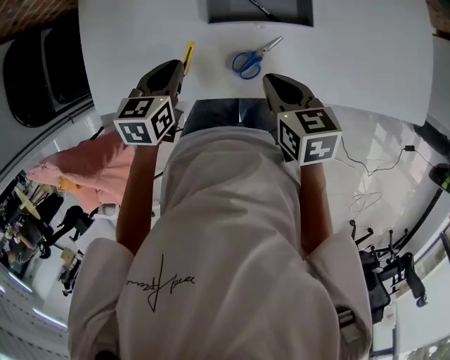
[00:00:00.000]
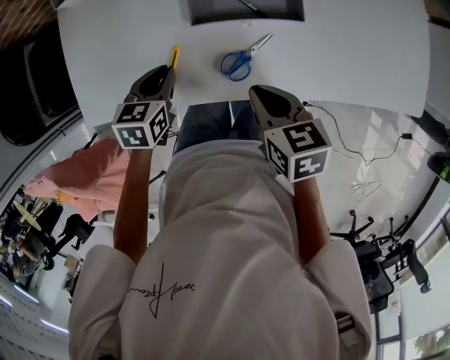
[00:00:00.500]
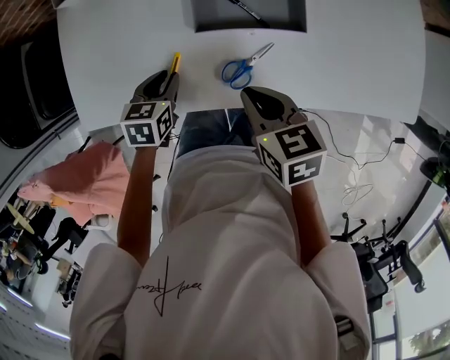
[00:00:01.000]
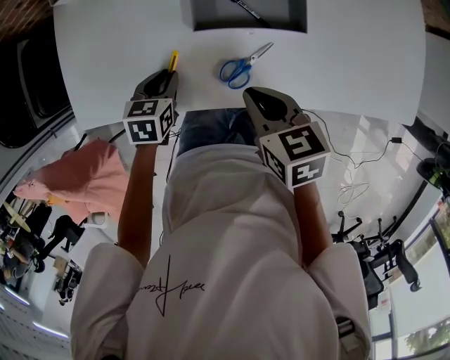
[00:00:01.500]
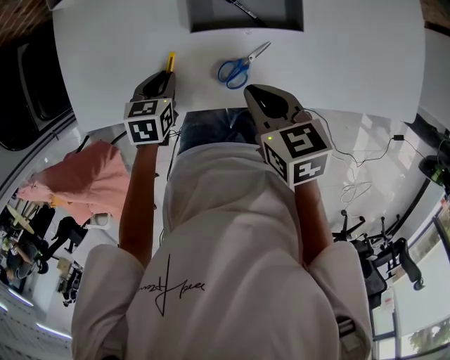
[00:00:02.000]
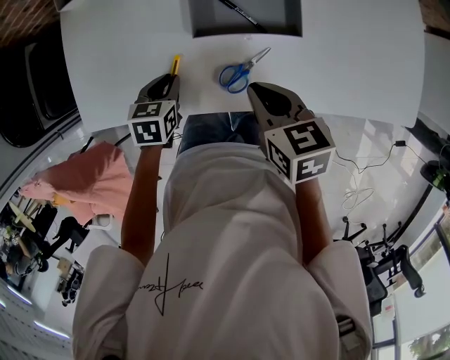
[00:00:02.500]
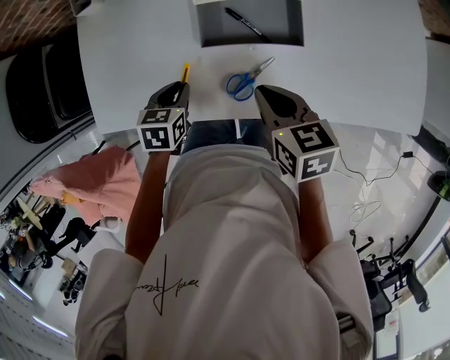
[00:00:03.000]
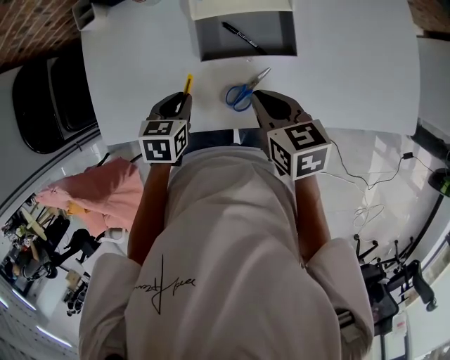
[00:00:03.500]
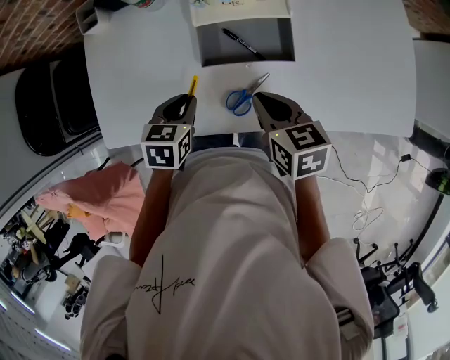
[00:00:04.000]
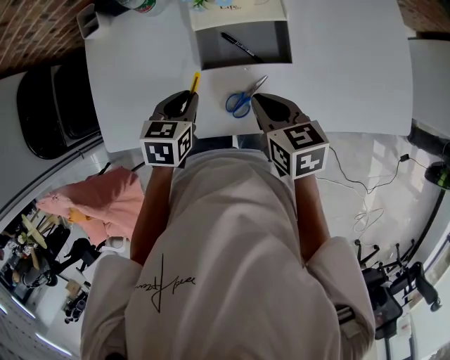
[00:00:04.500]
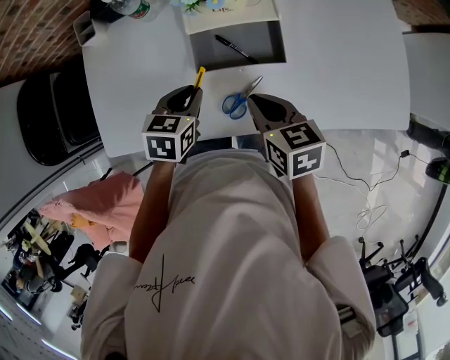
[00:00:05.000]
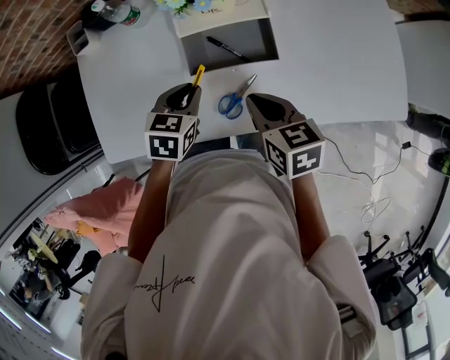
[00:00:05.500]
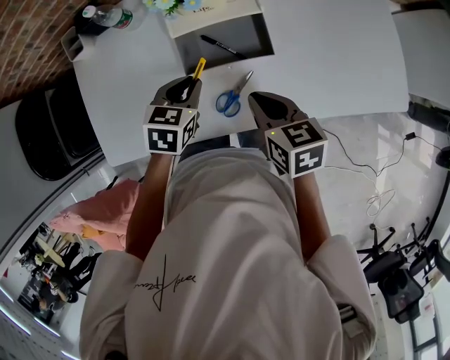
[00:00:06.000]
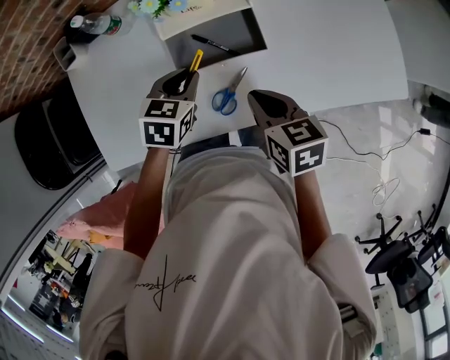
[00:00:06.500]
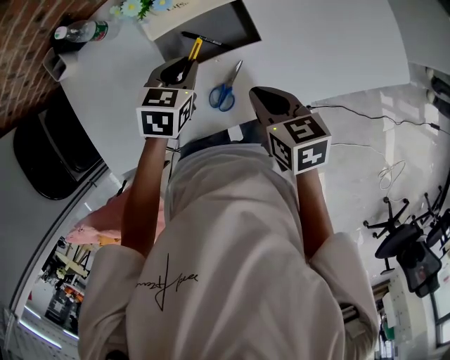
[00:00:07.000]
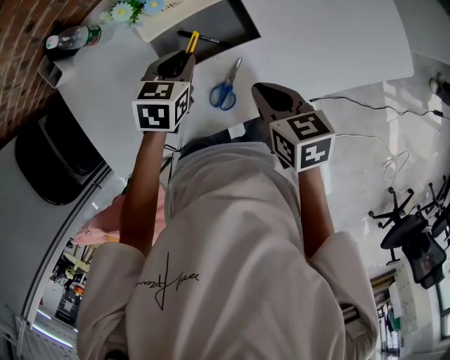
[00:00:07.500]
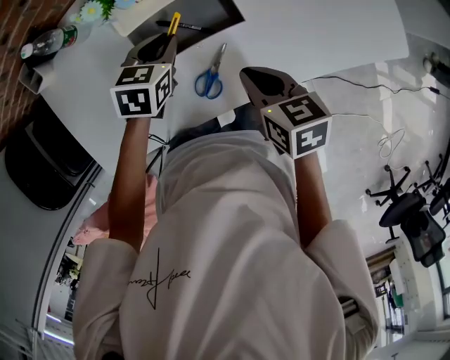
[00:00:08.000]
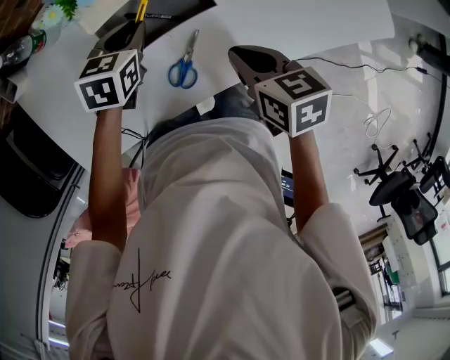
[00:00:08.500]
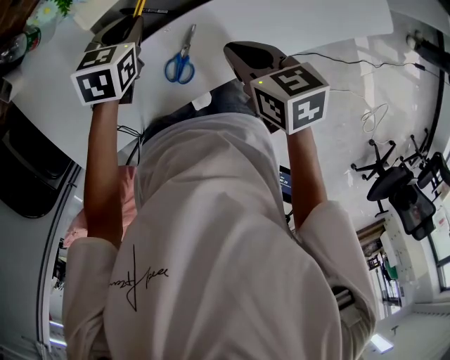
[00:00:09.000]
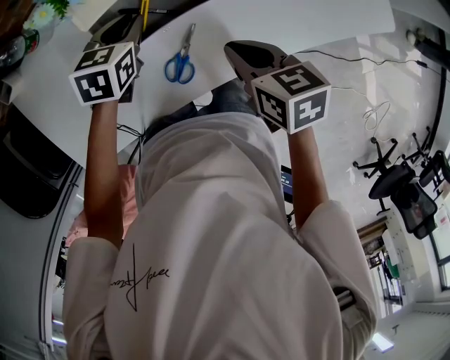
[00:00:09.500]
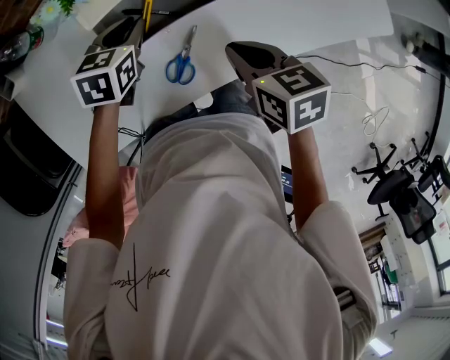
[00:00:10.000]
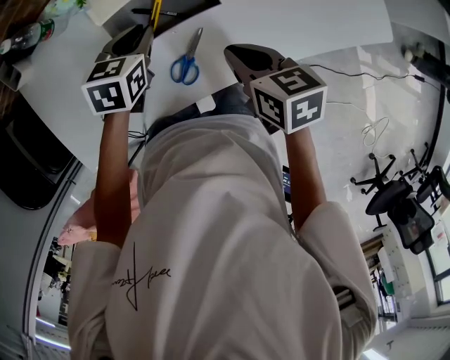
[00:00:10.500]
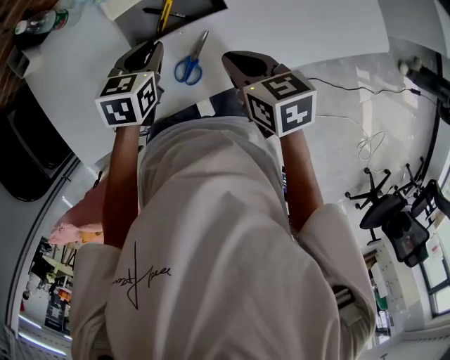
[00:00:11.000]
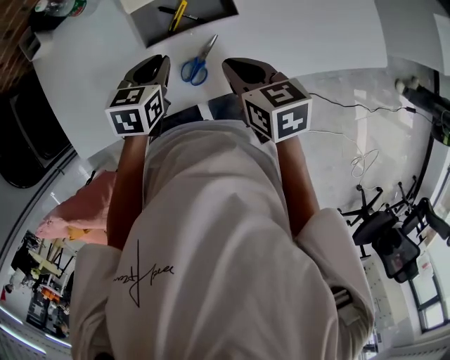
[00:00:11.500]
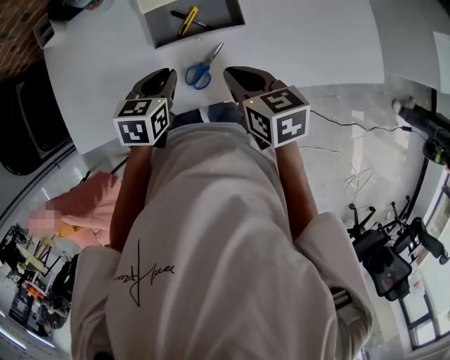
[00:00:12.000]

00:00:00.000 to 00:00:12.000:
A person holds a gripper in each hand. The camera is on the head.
00:00:00.000 to 00:00:02.000: The left gripper shifts about 10 cm downward.
00:00:02.000 to 00:00:04.000: The left gripper shifts approximately 10 cm upward and to the right; the right gripper shifts by approximately 5 cm.
00:00:04.000 to 00:00:06.000: The left gripper moves to the right, about 5 cm.
00:00:06.000 to 00:00:08.000: The left gripper moves forward, about 5 cm.
00:00:08.000 to 00:00:10.000: The grippers move only a little.
00:00:10.000 to 00:00:12.000: The left gripper moves backward, approximately 15 cm, while the right gripper shifts by some 5 cm.

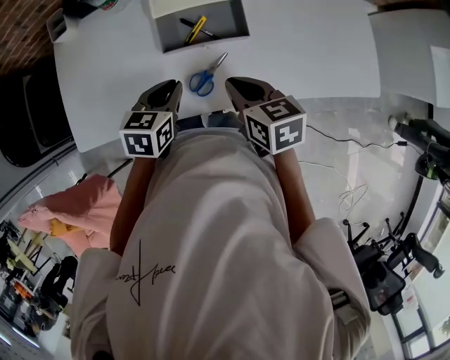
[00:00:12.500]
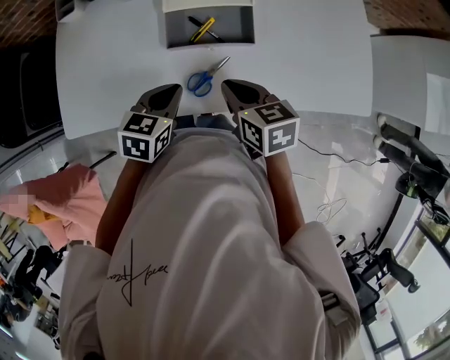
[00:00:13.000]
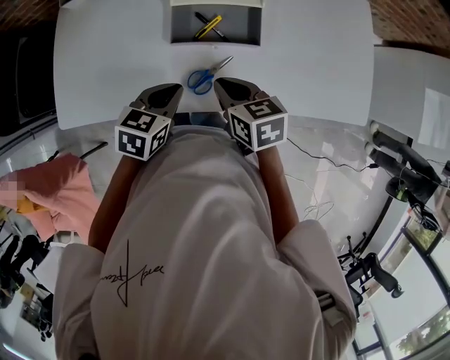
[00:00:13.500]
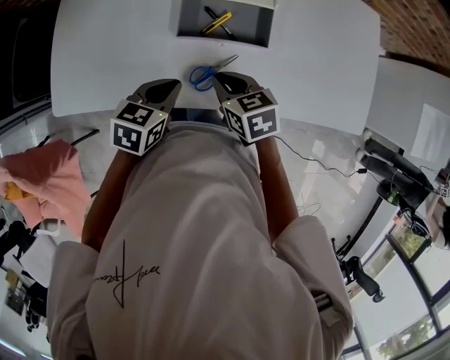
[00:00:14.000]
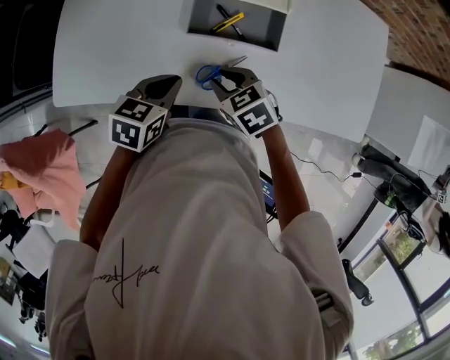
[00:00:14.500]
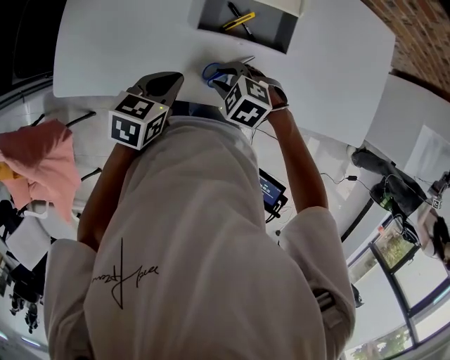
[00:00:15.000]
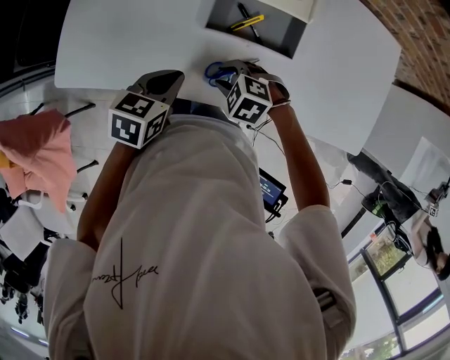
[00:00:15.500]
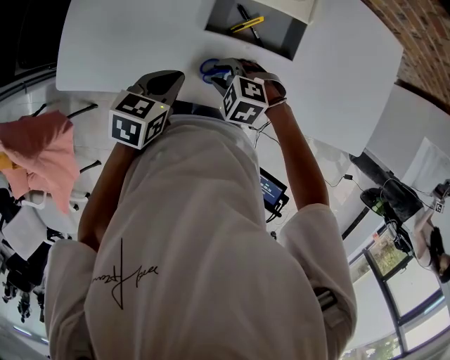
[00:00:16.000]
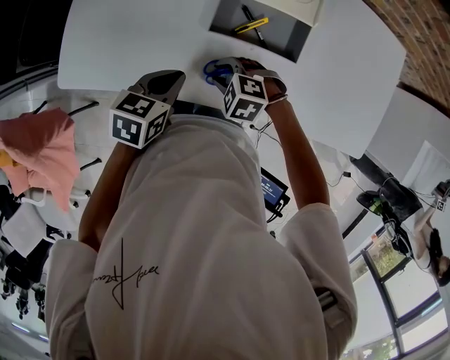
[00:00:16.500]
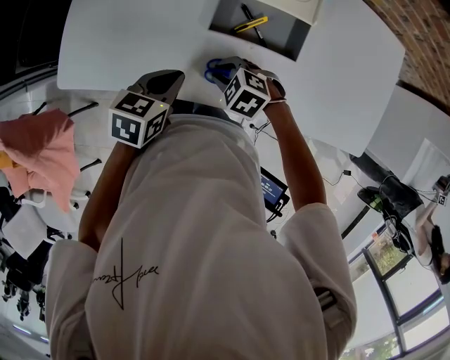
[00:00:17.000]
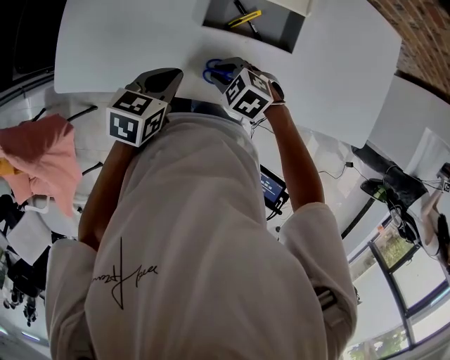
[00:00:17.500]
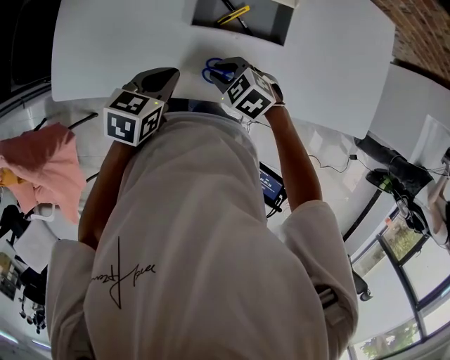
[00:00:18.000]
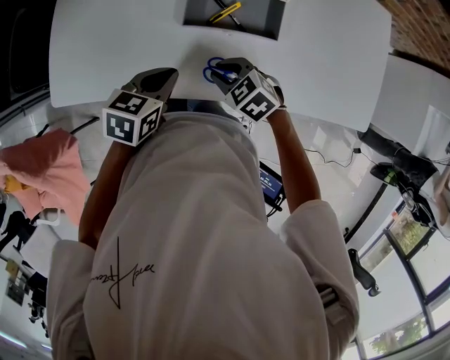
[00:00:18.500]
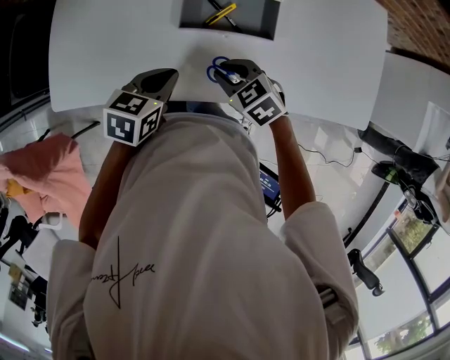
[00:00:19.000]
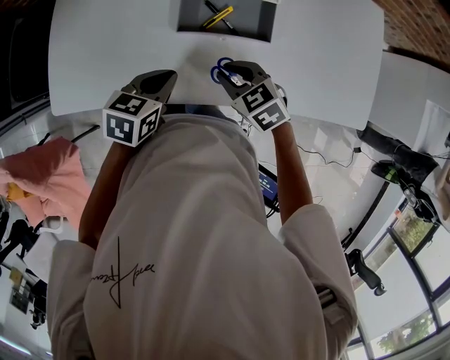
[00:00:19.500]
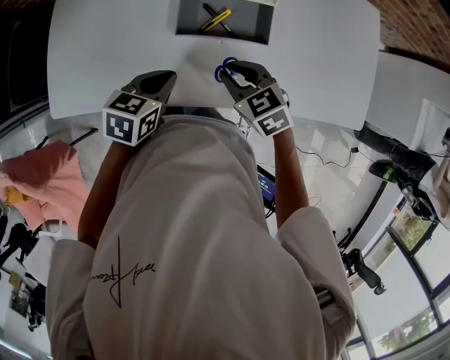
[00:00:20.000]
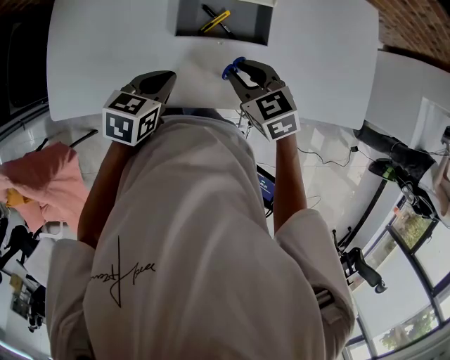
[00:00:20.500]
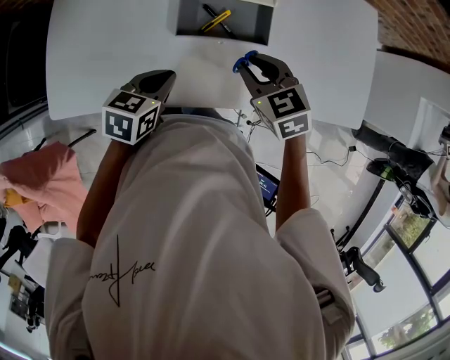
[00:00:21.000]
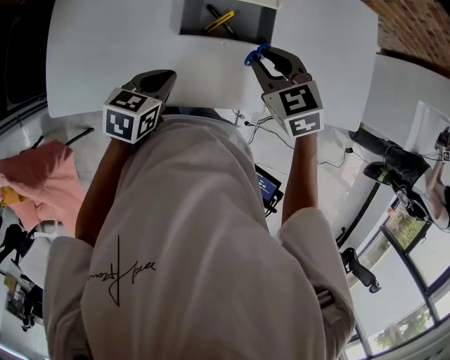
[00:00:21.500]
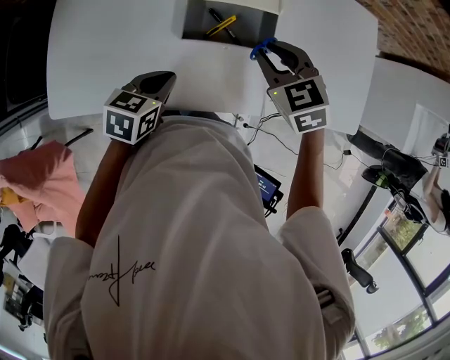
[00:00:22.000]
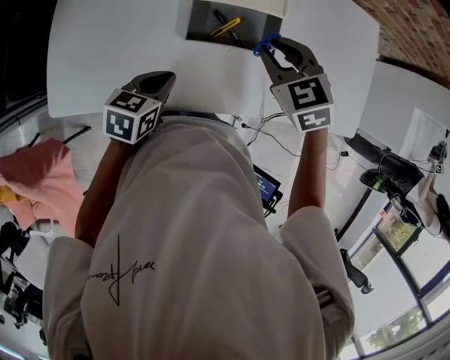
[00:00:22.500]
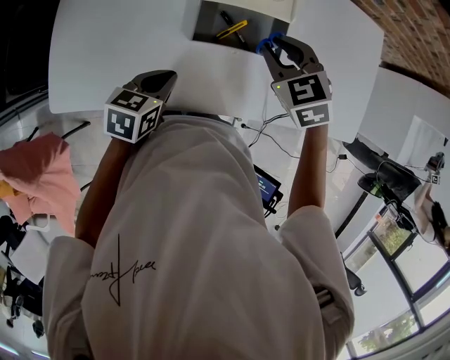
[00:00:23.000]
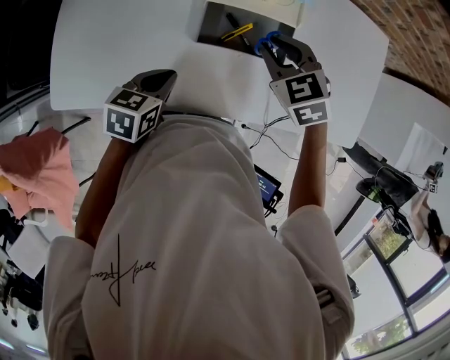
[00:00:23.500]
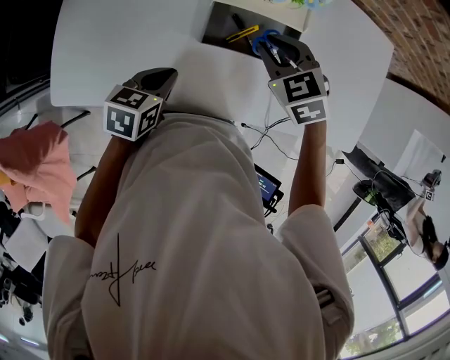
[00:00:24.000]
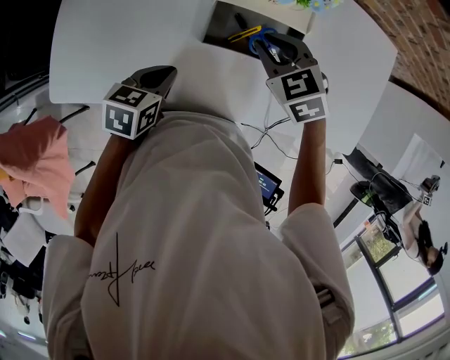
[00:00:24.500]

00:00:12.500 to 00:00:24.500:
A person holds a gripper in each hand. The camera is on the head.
00:00:12.500 to 00:00:14.500: The right gripper shifts approximately 10 cm downward and to the left, rotates roughly 40 degrees, and opens.
00:00:14.500 to 00:00:16.500: The right gripper travels downward by some 5 cm, and rolls counterclockwise, seen from behind, by roughly 40 degrees.
00:00:16.500 to 00:00:18.500: The right gripper changes place by about 5 cm, and rotates some 30 degrees.
00:00:18.500 to 00:00:20.500: The right gripper moves upward and to the right, approximately 10 cm, and turns by roughly 20 degrees.
00:00:20.500 to 00:00:22.500: The right gripper moves forward and upward, some 10 cm.
00:00:22.500 to 00:00:24.500: The right gripper shifts by some 5 cm.

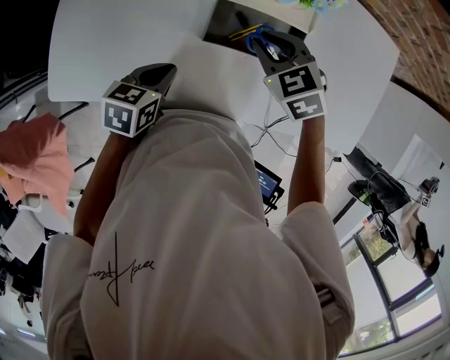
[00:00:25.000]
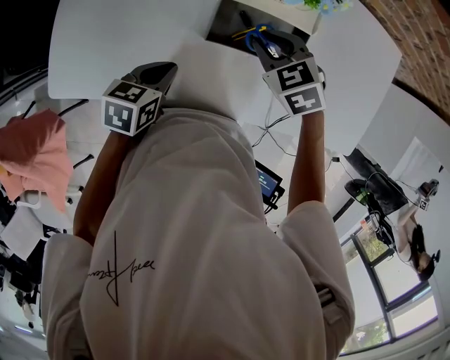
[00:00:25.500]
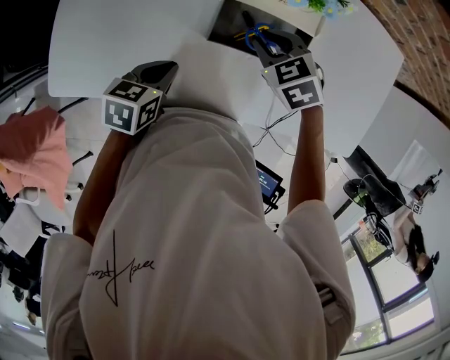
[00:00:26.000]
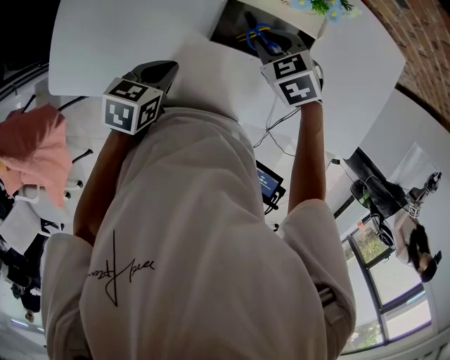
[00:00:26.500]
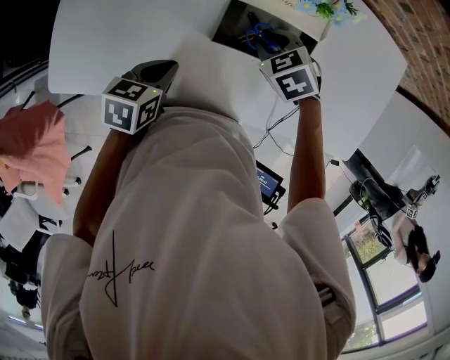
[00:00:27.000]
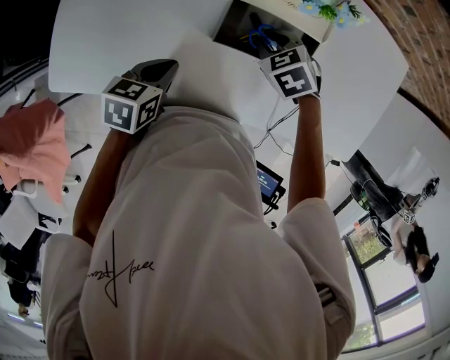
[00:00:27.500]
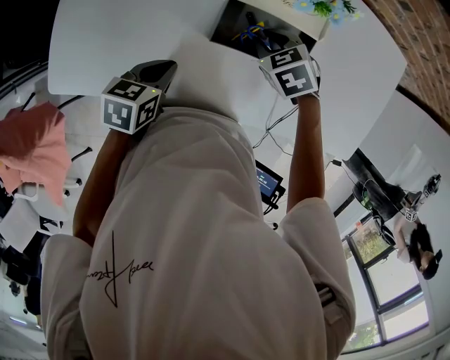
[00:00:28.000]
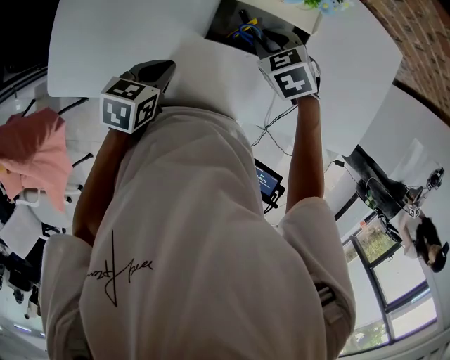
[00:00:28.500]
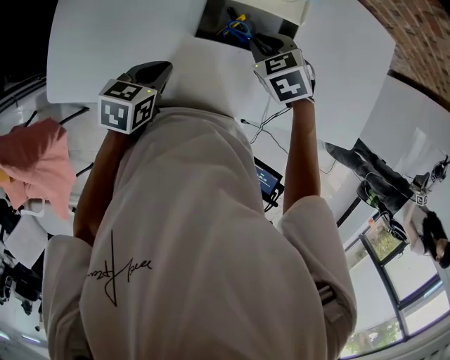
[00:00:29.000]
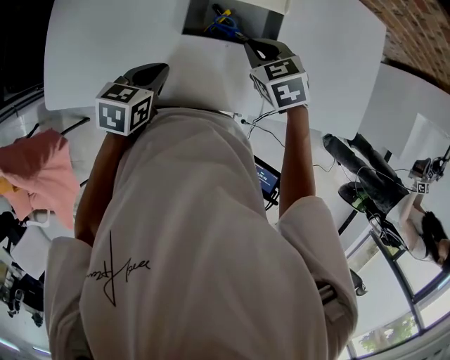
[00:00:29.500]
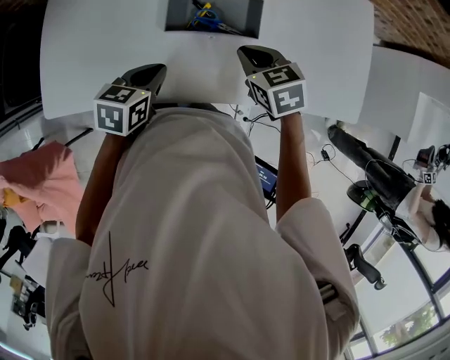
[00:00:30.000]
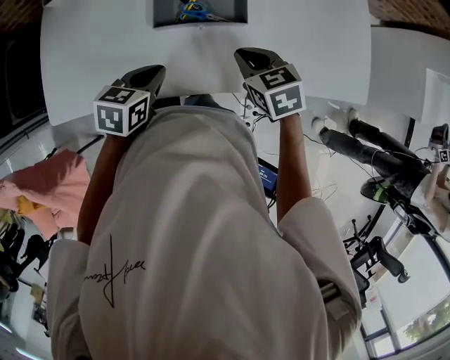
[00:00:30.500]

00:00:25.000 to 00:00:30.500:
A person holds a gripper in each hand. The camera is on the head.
00:00:25.000 to 00:00:27.000: The right gripper goes roughly 10 cm downward.
00:00:27.000 to 00:00:28.500: There are only small adjustments of the grippers.
00:00:28.500 to 00:00:30.500: The left gripper goes about 10 cm to the right. Meanwhile the right gripper is displaced backward and to the right by approximately 15 cm, and turns by about 30 degrees.
